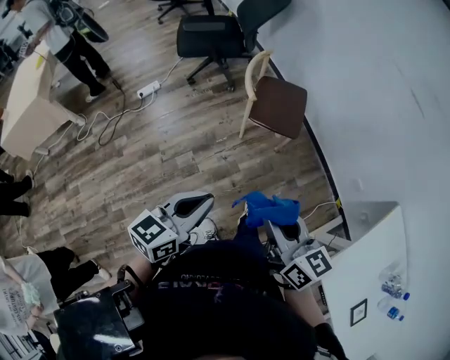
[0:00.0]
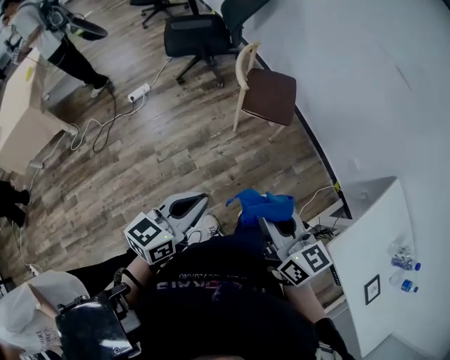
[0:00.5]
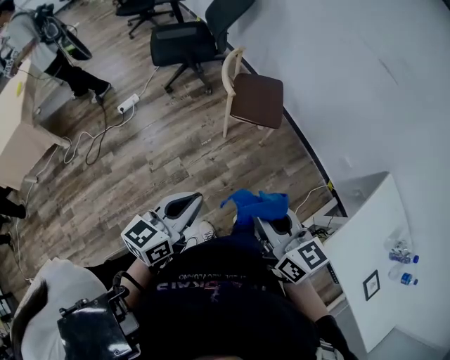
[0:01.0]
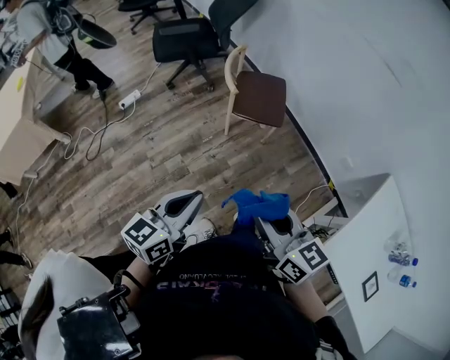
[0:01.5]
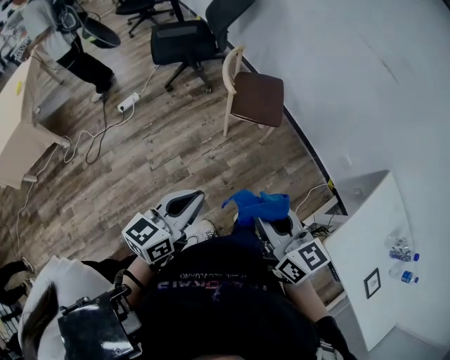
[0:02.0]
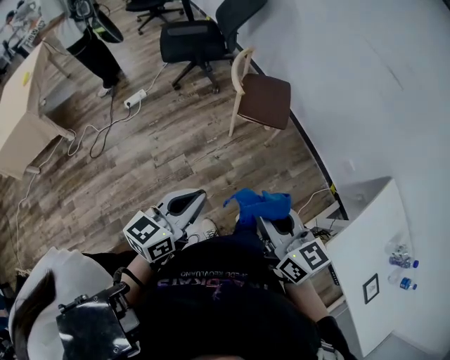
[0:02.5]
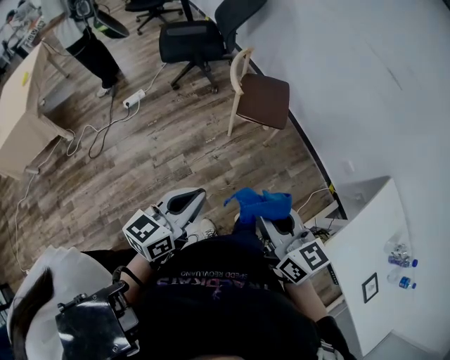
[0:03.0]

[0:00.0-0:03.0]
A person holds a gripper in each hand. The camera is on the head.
0:00.0 to 0:01.5: The right gripper moves about 5 cm.
0:01.5 to 0:03.0: Both grippers stay put.

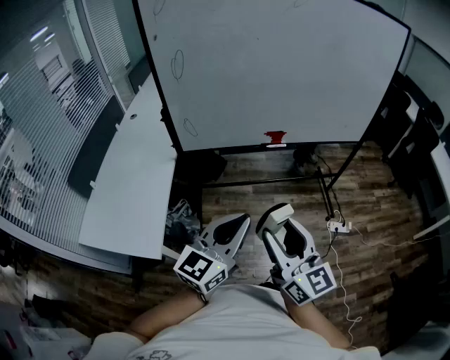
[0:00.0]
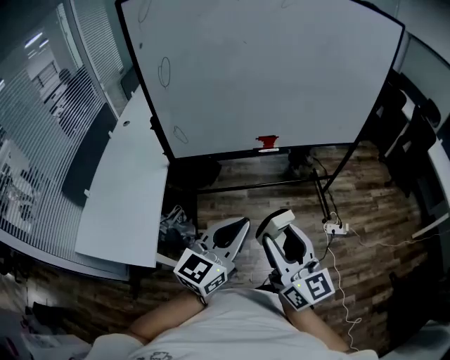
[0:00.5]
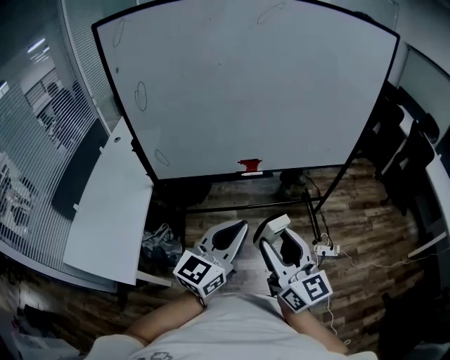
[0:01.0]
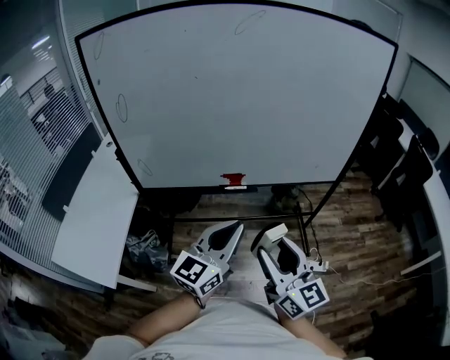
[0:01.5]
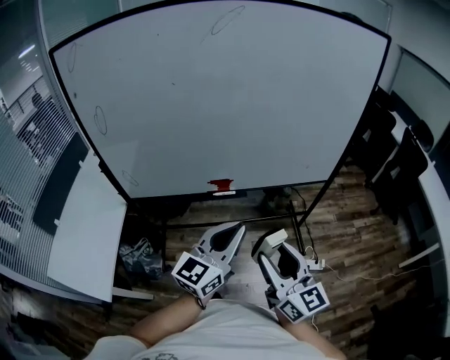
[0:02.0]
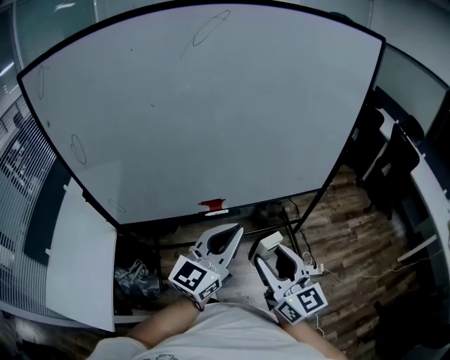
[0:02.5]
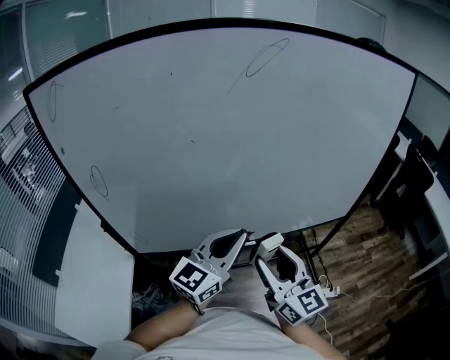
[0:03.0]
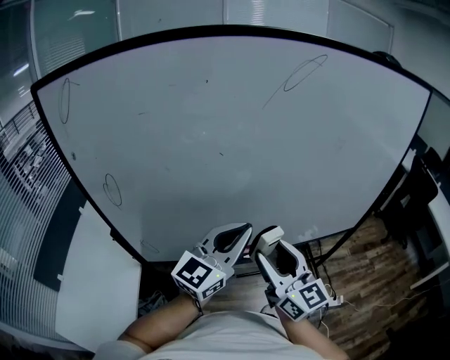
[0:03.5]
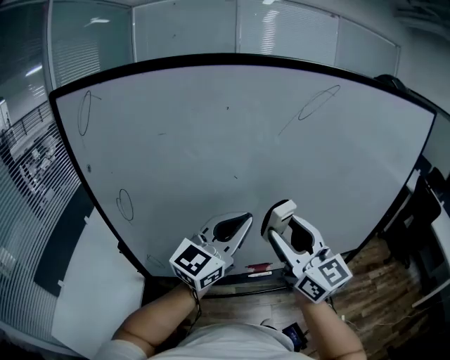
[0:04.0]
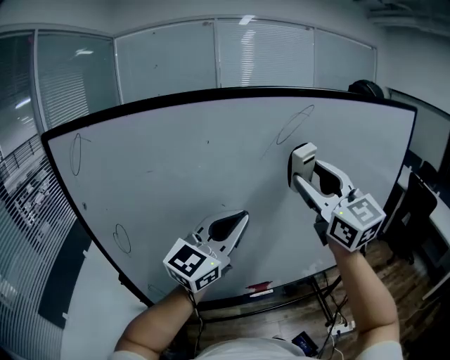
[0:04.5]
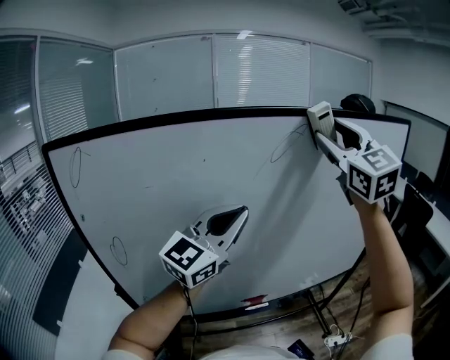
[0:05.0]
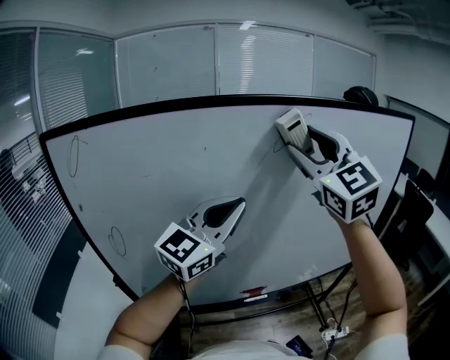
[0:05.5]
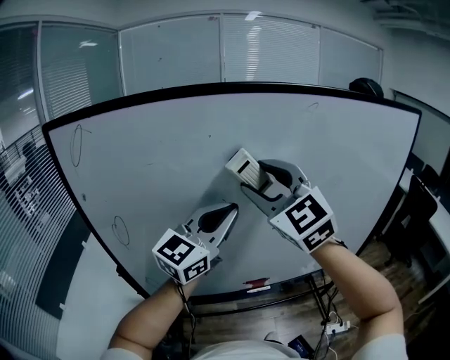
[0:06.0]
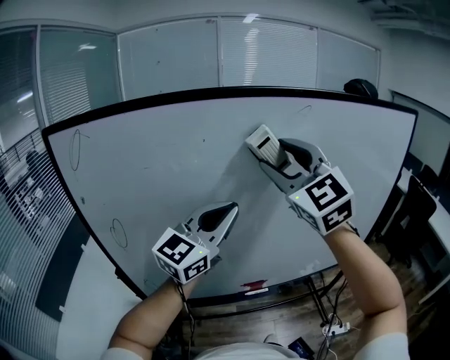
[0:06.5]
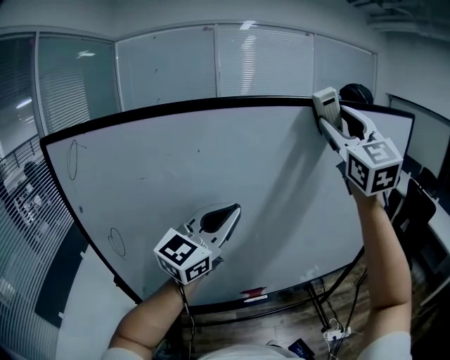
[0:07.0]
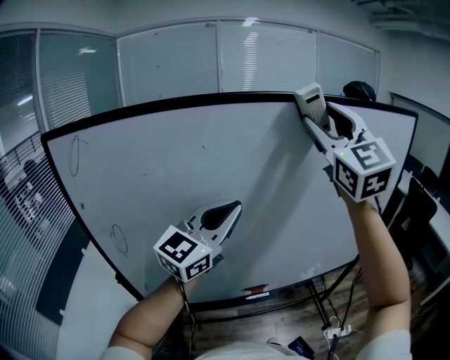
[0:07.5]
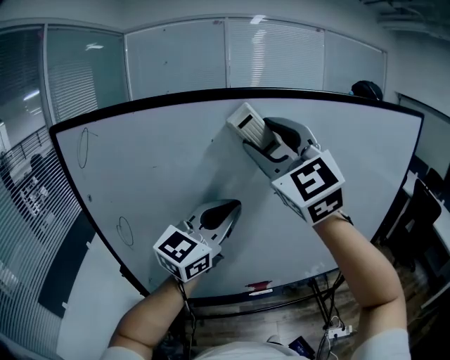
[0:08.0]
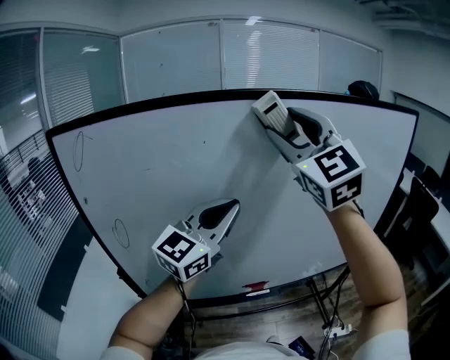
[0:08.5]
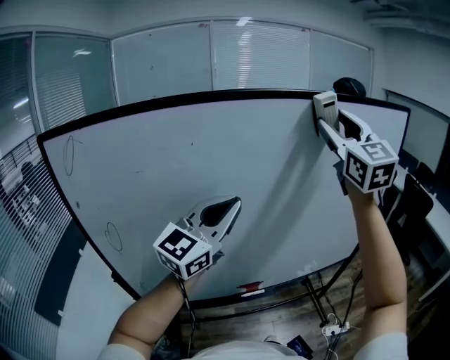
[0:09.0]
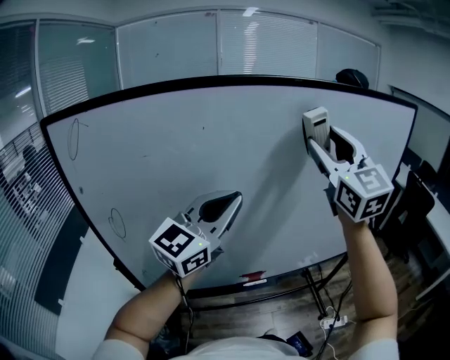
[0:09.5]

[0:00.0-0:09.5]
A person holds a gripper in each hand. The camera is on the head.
0:00.0 to 0:02.0: The right gripper goes about 30 cm to the right and forward. Meanwhile the left gripper goes about 35 cm forward and to the right.
0:02.0 to 0:04.0: Both grippers travel together forward, to the left and upward, approximately 35 cm.
0:04.0 to 0:05.5: The left gripper moves upward, approximately 10 cm. Meanwhile the right gripper travels upward and forward by roughly 25 cm, and changes its angle by about 40 degrees.
0:05.5 to 0:07.5: The right gripper goes left and right, about 20 cm each way, reversing 2 times.
0:07.5 to 0:09.5: The right gripper swings left and right, roughly 20 cm each way, with 2 reversals.

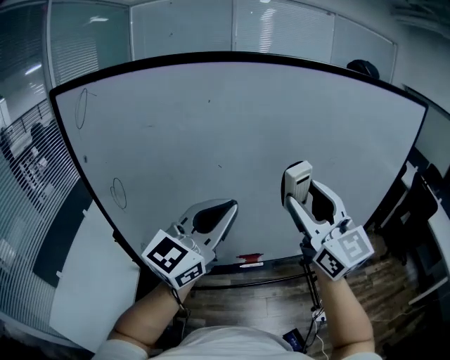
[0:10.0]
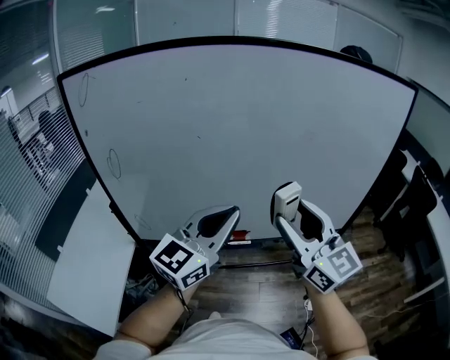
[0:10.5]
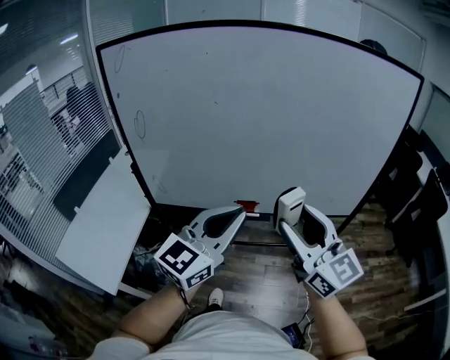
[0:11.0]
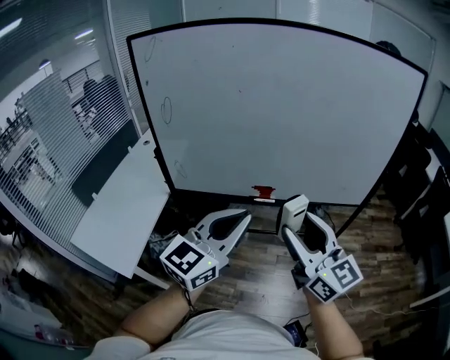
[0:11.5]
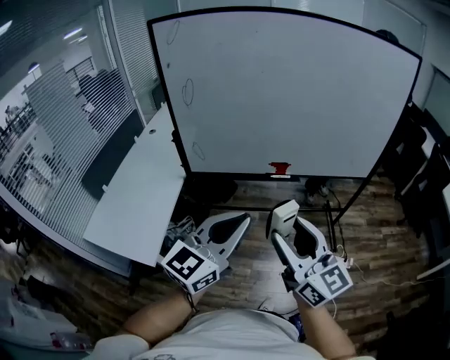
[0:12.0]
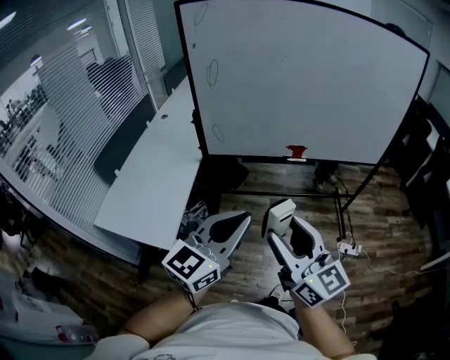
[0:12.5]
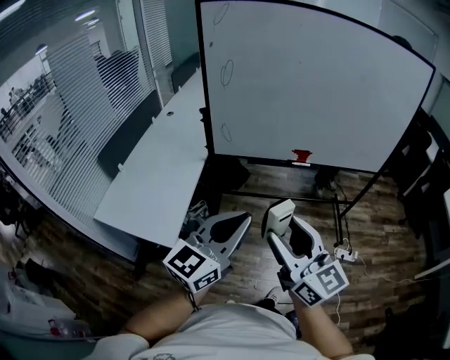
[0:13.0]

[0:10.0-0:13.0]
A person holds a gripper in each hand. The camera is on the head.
0:10.0 to 0:11.5: The left gripper moves backward, about 30 cm, while the right gripper travels backward and downward by roughly 35 cm, and turns by approximately 20 degrees.
0:11.5 to 0:13.0: Both grippers travel together to the left and backward, approximately 30 cm.

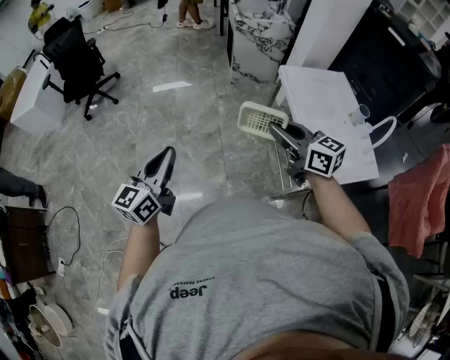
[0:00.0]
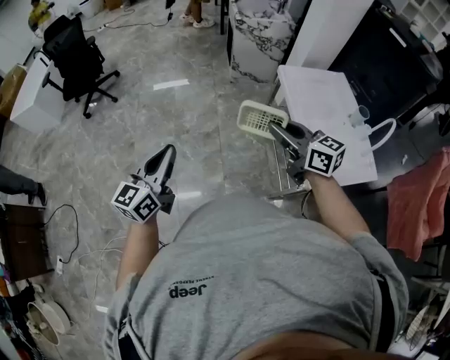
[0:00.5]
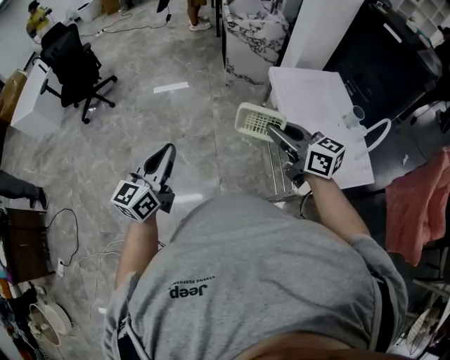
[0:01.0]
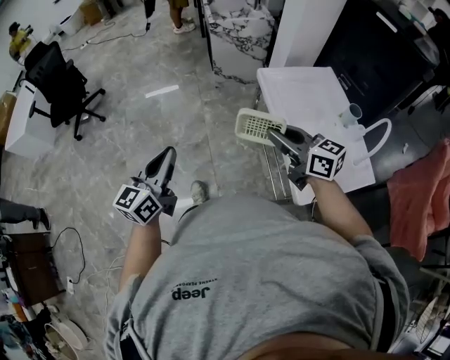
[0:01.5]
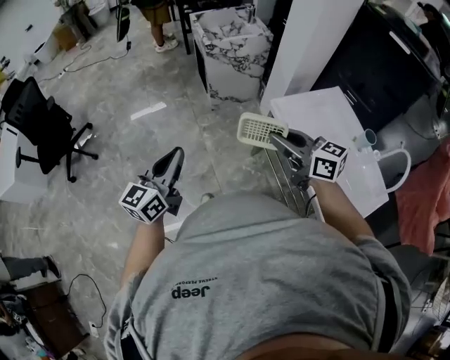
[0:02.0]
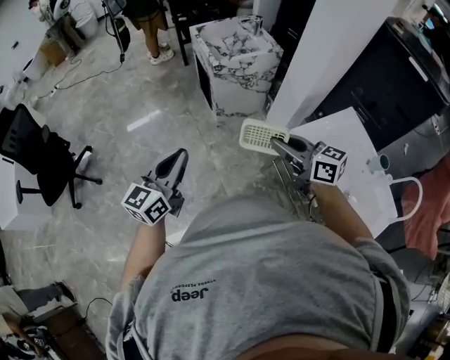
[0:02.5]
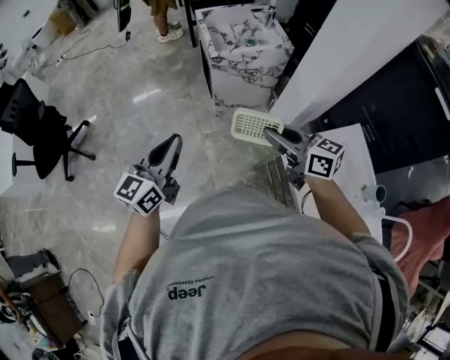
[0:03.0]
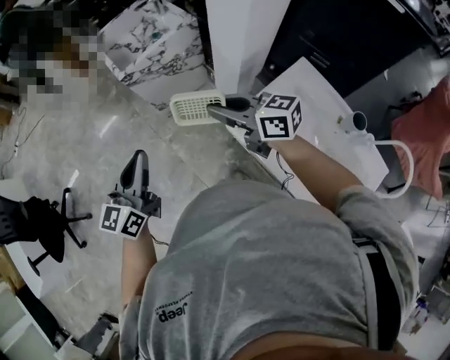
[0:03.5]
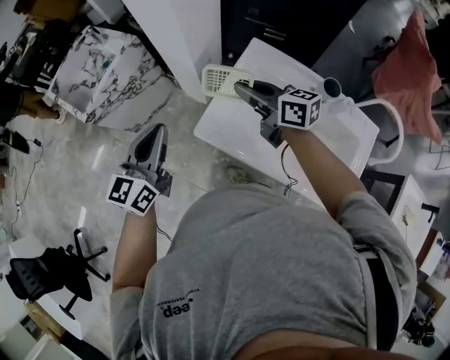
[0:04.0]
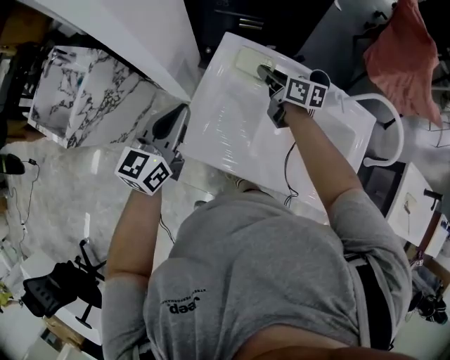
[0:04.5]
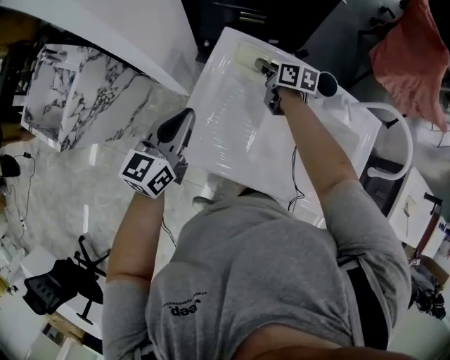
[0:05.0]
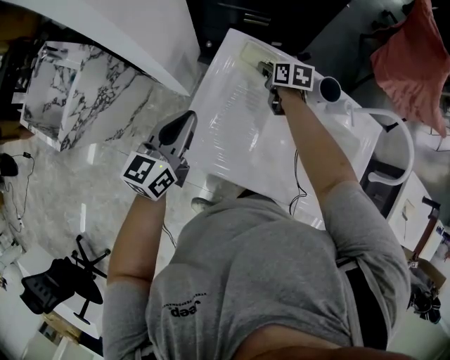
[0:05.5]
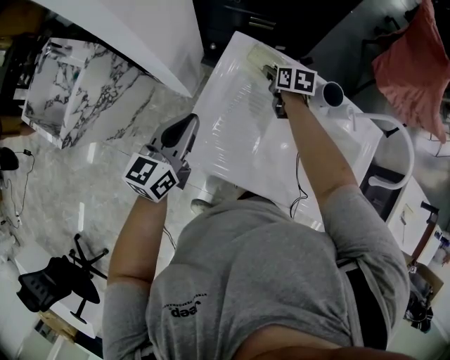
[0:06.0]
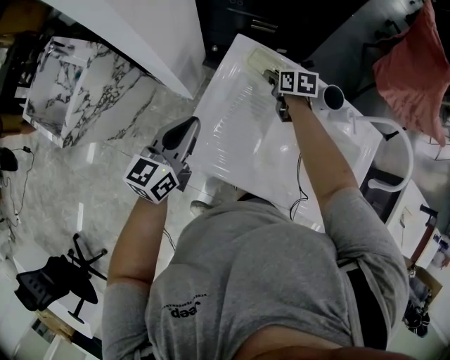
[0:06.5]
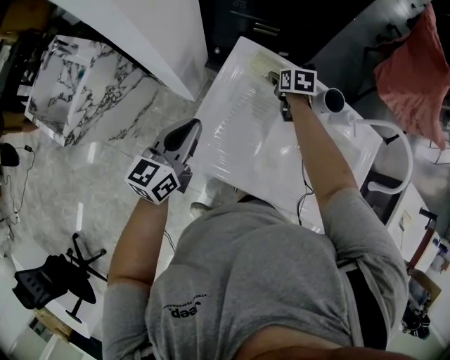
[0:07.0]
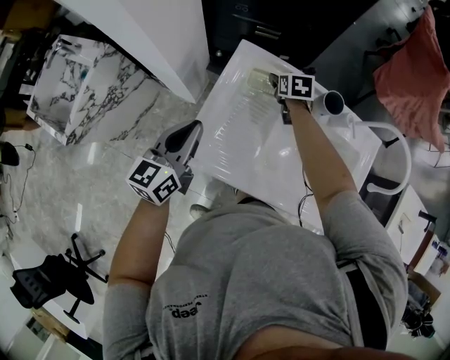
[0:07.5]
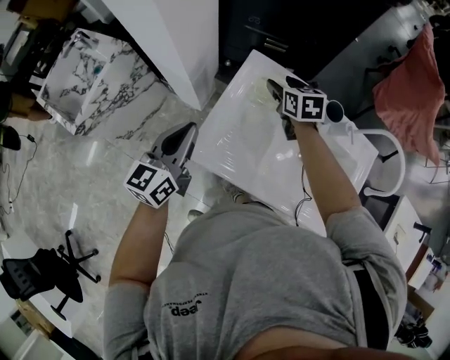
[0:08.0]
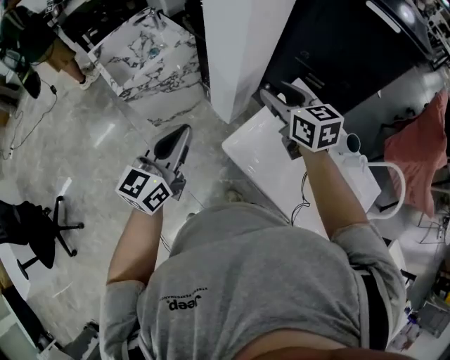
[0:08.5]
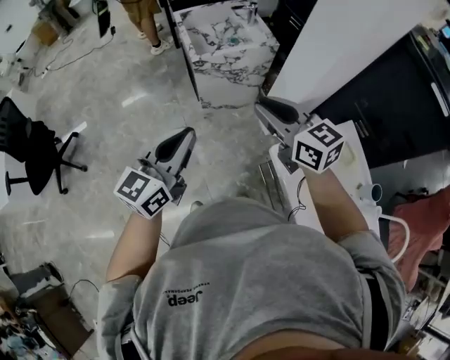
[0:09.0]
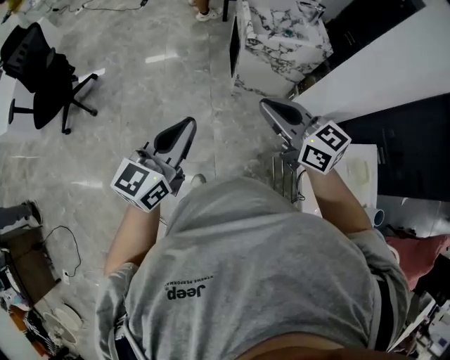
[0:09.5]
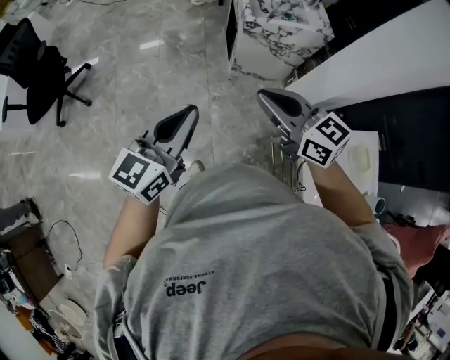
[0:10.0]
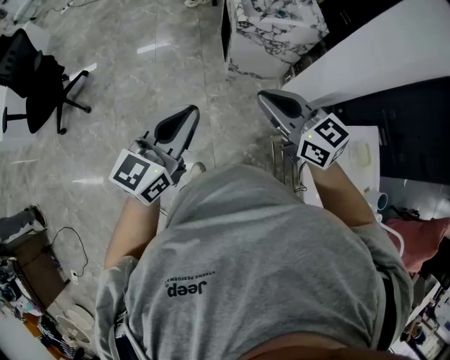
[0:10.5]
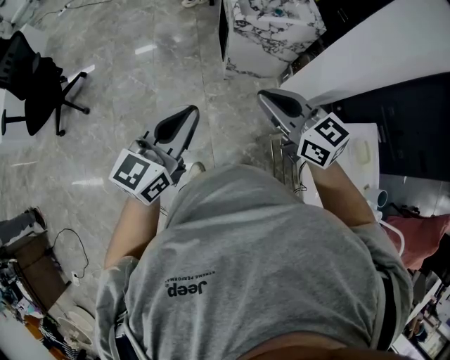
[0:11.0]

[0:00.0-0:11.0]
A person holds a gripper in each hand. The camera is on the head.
0:00.0 to 0:02.0: The two grippers go roughly 30 cm forward.
0:02.0 to 0:03.5: The left gripper is displaced forward and to the right by about 35 cm. Meanwhile the right gripper travels forward by approximately 30 cm.
0:03.5 to 0:05.5: The left gripper shifts by about 40 cm, and rotates some 40 degrees, while the right gripper moves about 60 cm, and tilts its fingers some 40 degrees downward.
0:05.5 to 0:07.5: The right gripper opens up.
0:07.5 to 0:09.0: The two grippers travel together, roughly 50 cm. The left gripper swivels some 50 degrees. Meanwhile the right gripper angles its fingers upward, by roughly 40 degrees, and closes.
0:09.0 to 0:11.0: Both grippers travel together to the left, about 10 cm.
